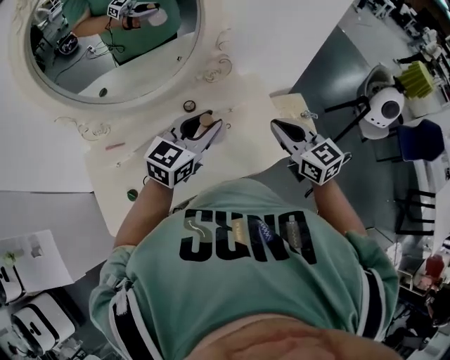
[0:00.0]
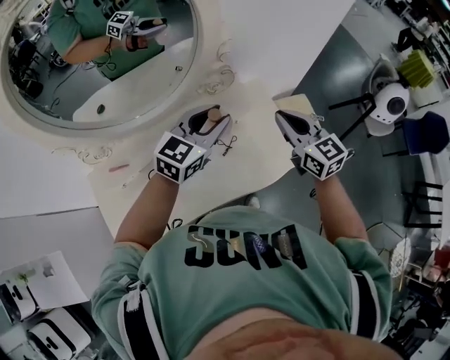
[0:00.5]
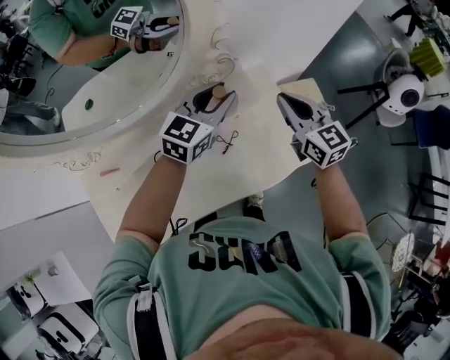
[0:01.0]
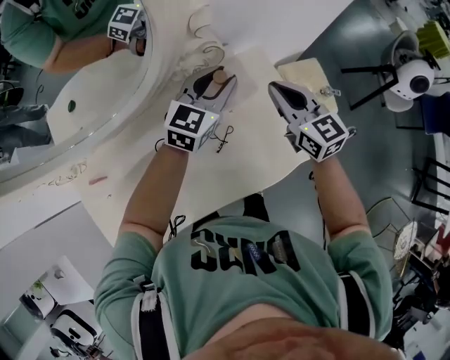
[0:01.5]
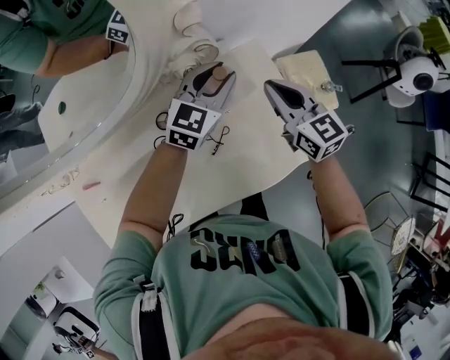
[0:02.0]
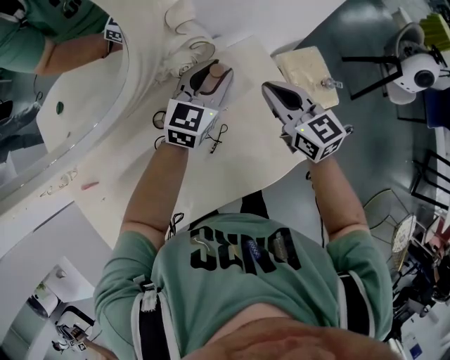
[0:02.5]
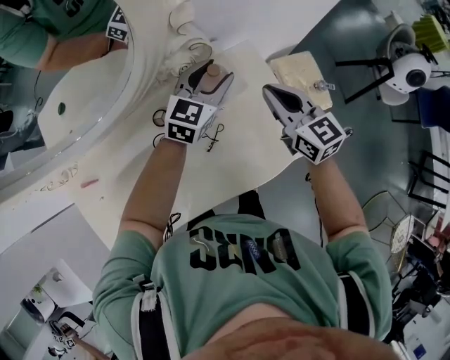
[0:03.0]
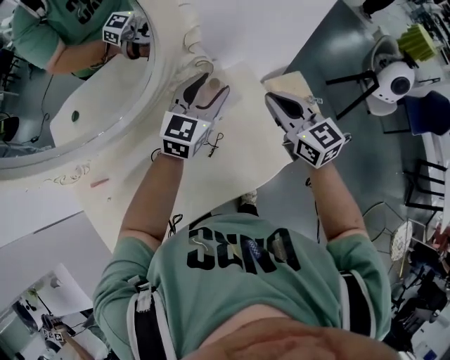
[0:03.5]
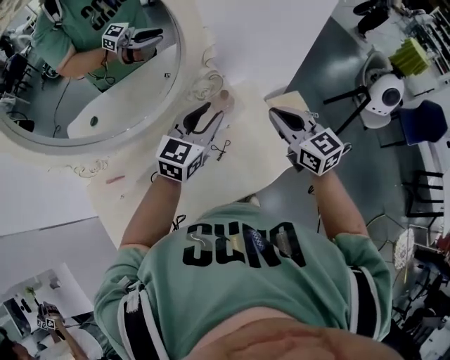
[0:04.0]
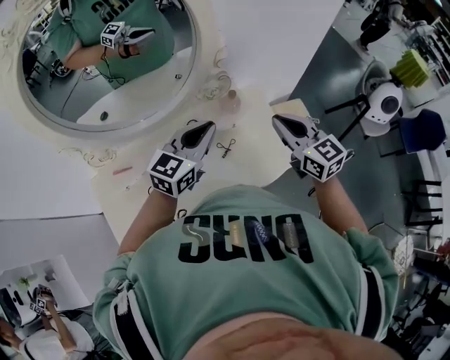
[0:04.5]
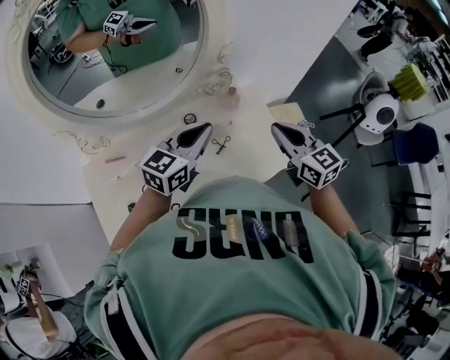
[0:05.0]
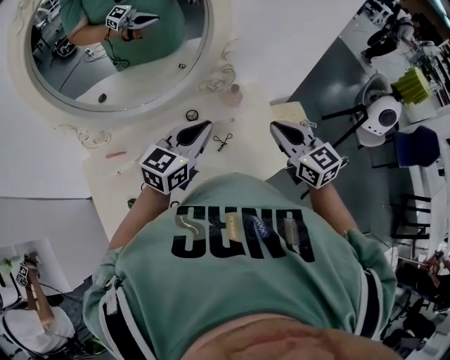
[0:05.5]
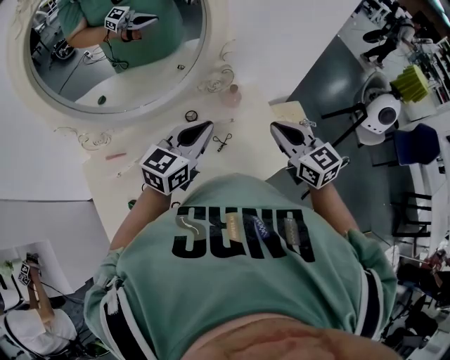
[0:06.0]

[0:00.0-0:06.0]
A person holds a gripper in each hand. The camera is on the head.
0:00.0 to 0:02.0: The two grippers go roughly 30 cm forward and downward.
0:02.0 to 0:04.0: The two grippers go some 20 cm upward and backward.
0:04.0 to 0:06.0: The two grippers go about 10 cm backward. The left gripper closes its fingers.

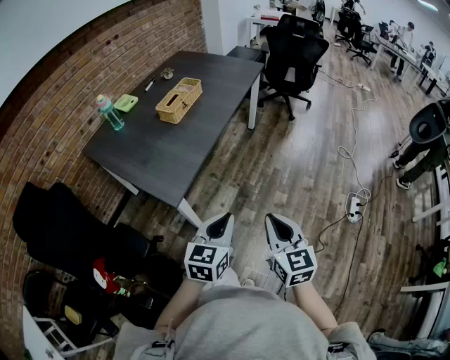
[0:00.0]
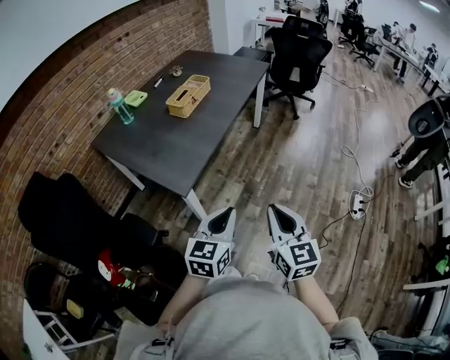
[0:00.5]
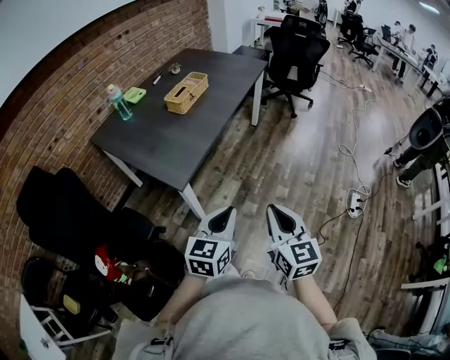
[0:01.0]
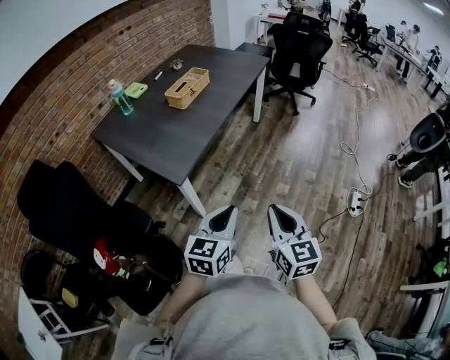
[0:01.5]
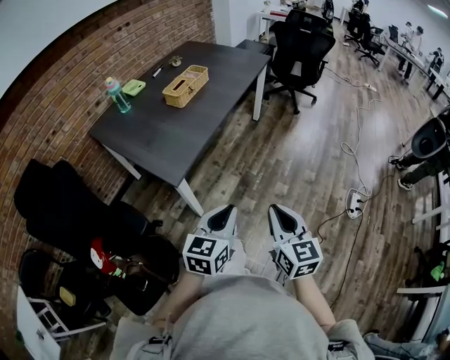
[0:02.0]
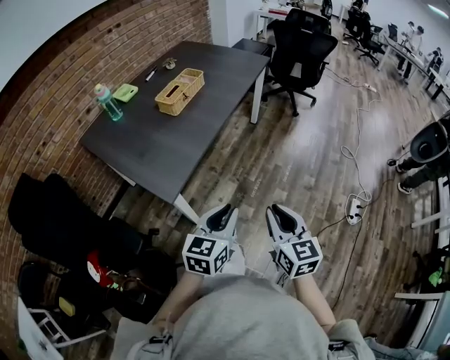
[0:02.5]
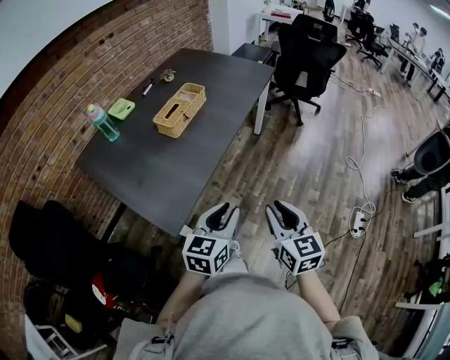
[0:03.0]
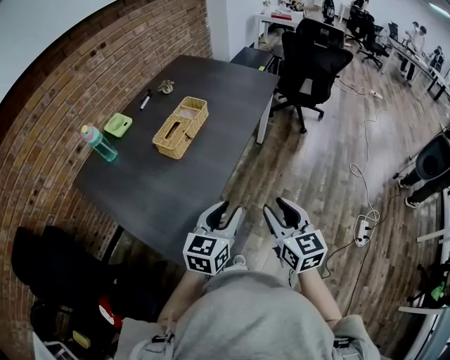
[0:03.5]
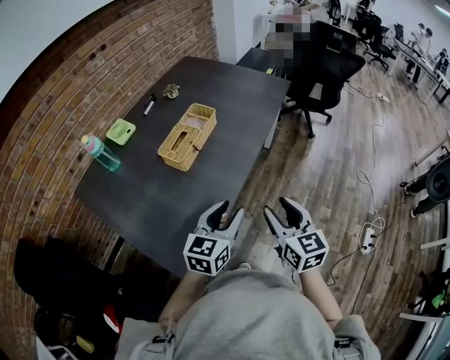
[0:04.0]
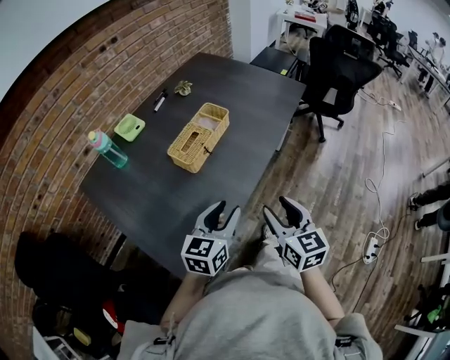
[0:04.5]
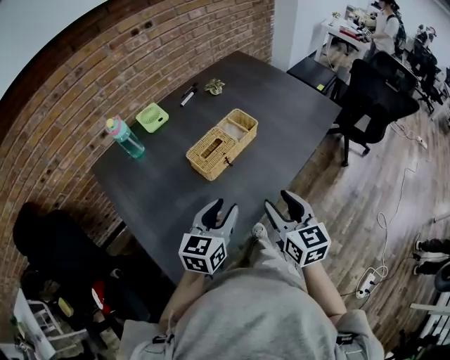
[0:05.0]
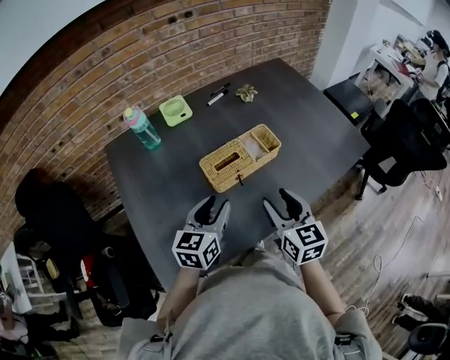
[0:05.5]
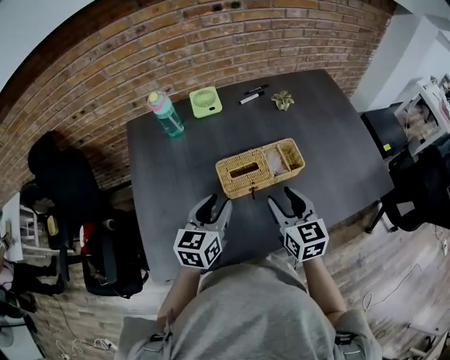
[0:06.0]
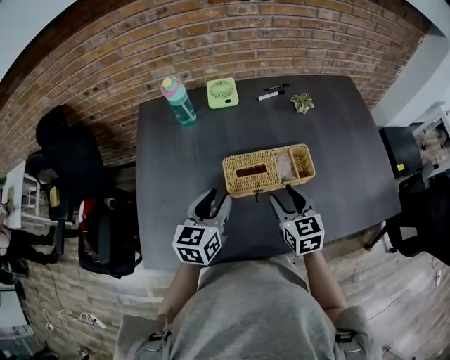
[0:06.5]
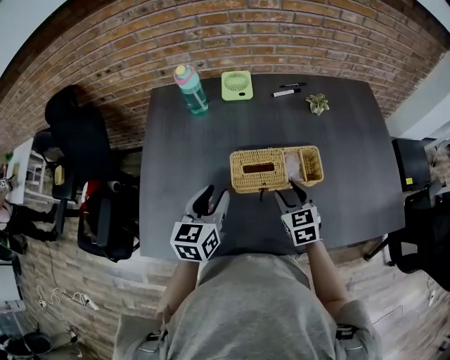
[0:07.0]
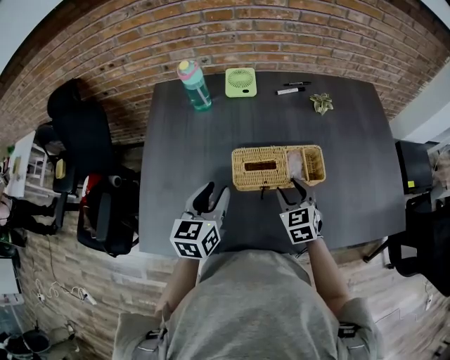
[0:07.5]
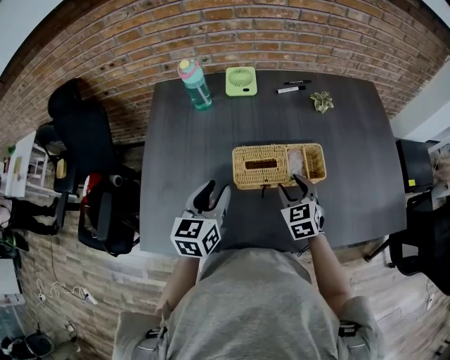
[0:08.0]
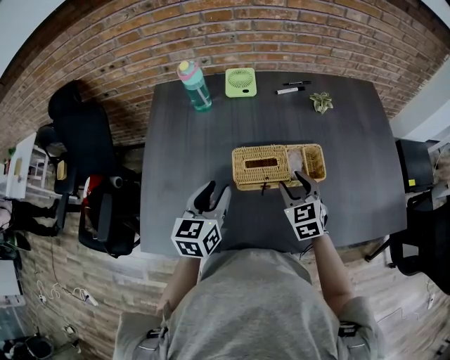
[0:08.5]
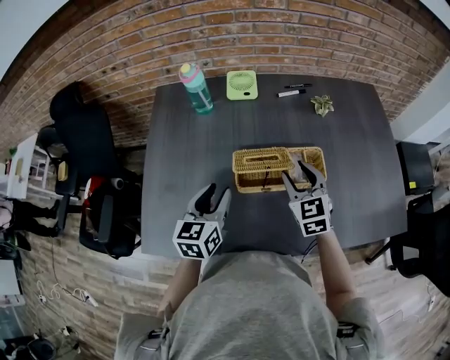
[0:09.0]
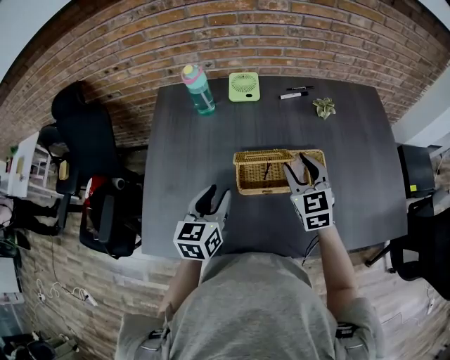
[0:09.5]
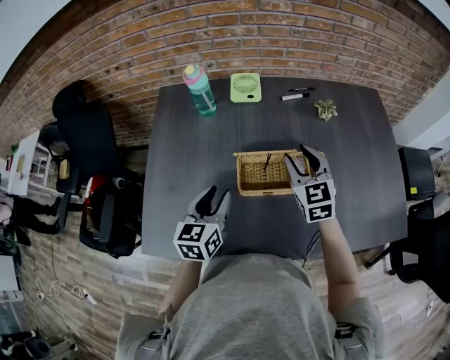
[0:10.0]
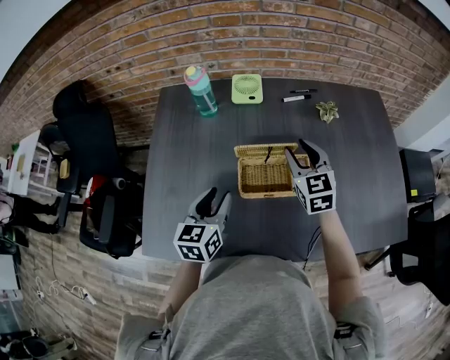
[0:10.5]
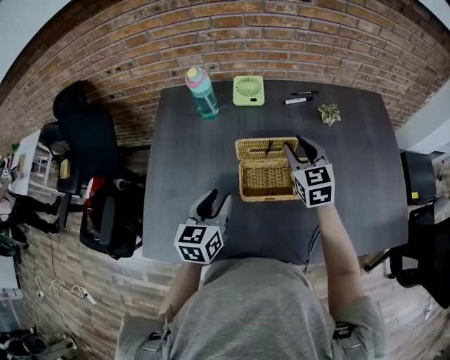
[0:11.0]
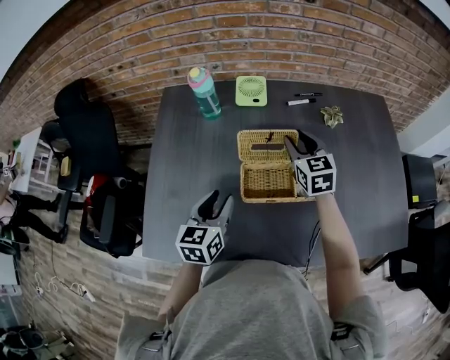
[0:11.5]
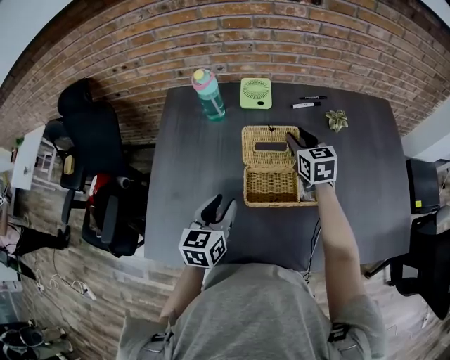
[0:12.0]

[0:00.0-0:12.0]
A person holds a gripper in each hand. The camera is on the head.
0:00.0 to 0:02.0: The right gripper changes place by some 5 cm, while the left gripper heads backward, covering roughly 5 cm.
0:02.0 to 0:04.0: The two grippers travel together, forward, about 40 cm. The left gripper opens up. Meanwhile the right gripper opens up.
0:04.0 to 0:06.0: The right gripper shifts by about 35 cm, and changes its angle by about 50 degrees, while the left gripper ends up approximately 25 cm from where it was, and turns by some 50 degrees.
0:06.0 to 0:08.0: The right gripper is displaced downward and forward by approximately 15 cm, and changes its angle by roughly 30 degrees.
0:08.0 to 0:10.0: The right gripper goes roughly 15 cm upward and forward.
0:10.0 to 0:12.0: The right gripper is displaced forward by about 10 cm.

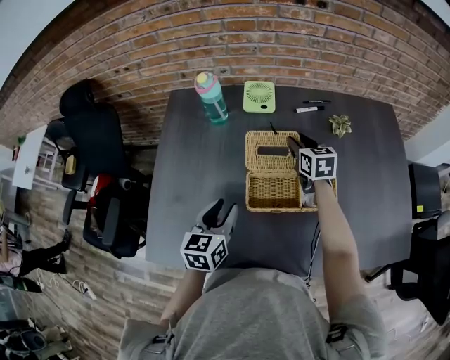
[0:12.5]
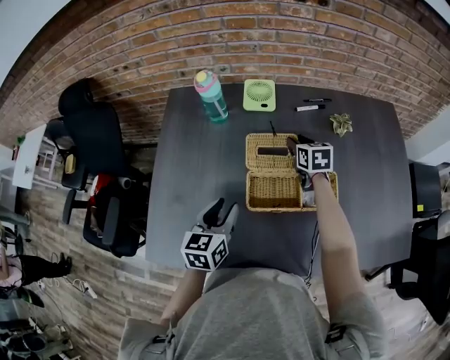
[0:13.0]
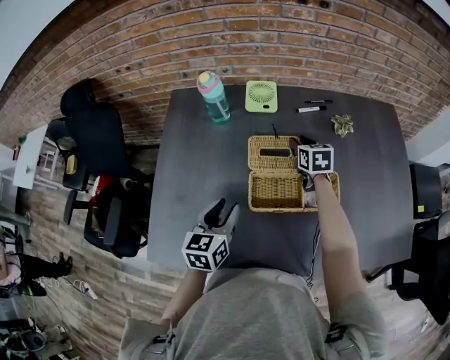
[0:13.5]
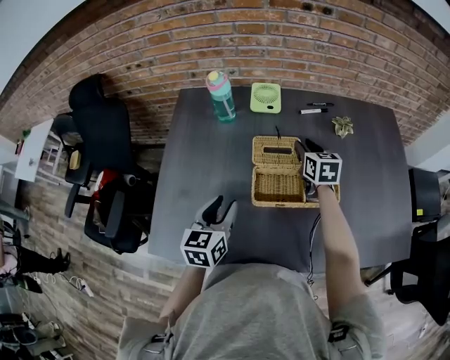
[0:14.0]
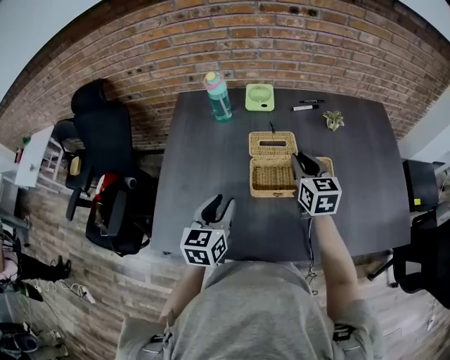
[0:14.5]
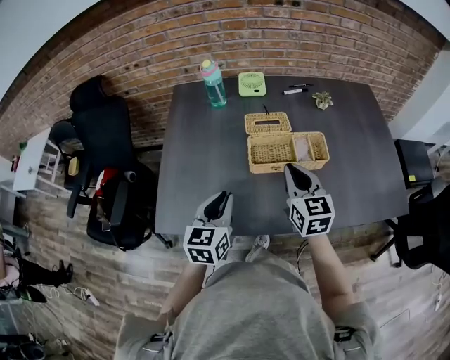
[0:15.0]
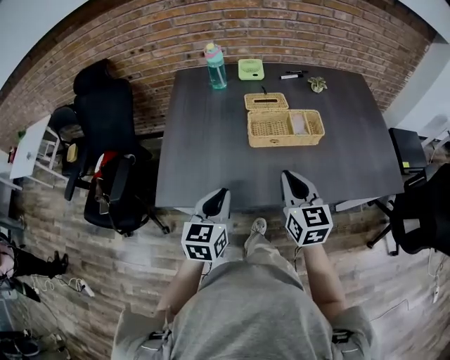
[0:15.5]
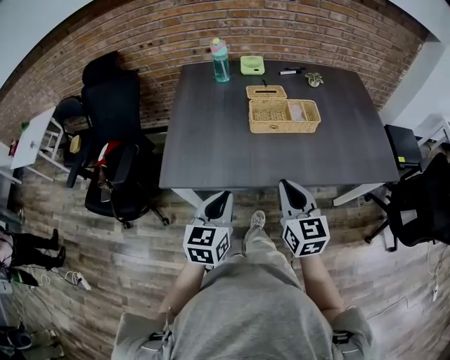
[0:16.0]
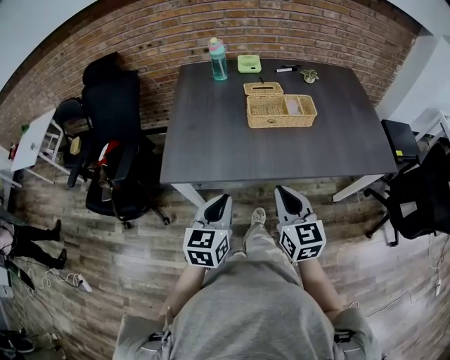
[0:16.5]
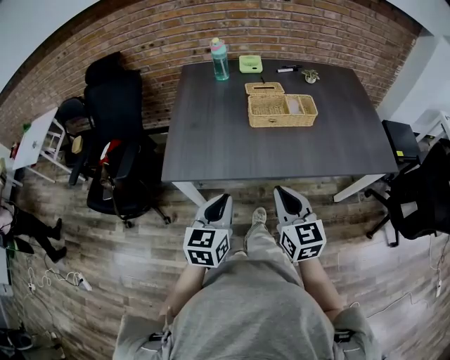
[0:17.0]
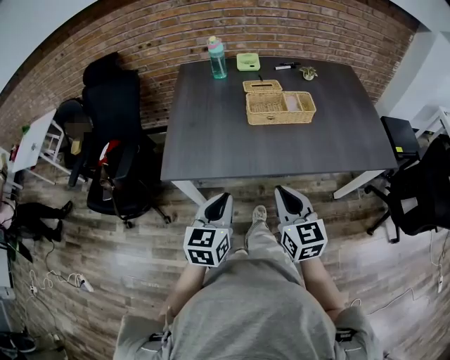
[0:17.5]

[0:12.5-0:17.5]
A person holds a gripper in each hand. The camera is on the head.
0:12.5 to 0:15.0: The left gripper shifts approximately 15 cm backward, and closes up. Meanwhile the right gripper travels backward by roughly 30 cm, and closes up.
0:15.0 to 0:17.5: The two grippers go roughly 30 cm backward.

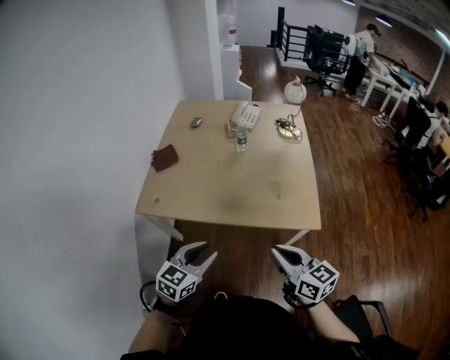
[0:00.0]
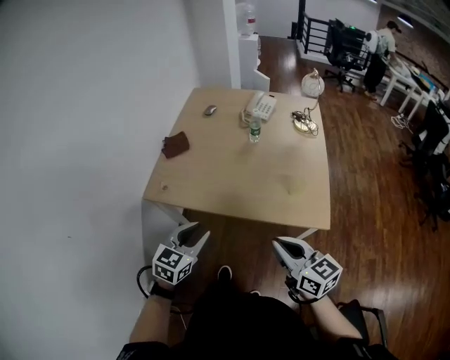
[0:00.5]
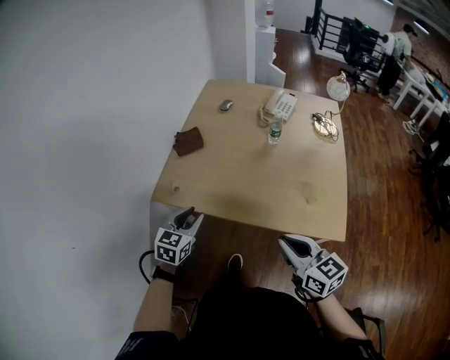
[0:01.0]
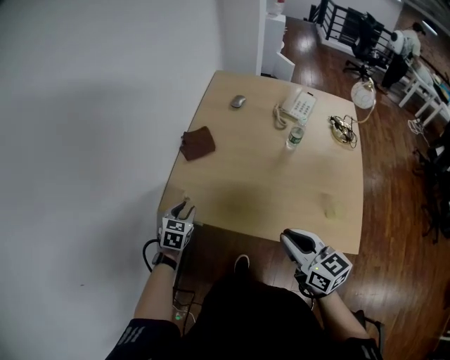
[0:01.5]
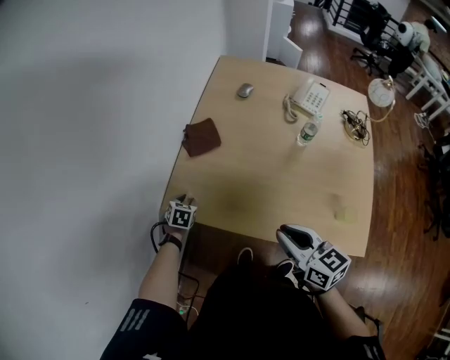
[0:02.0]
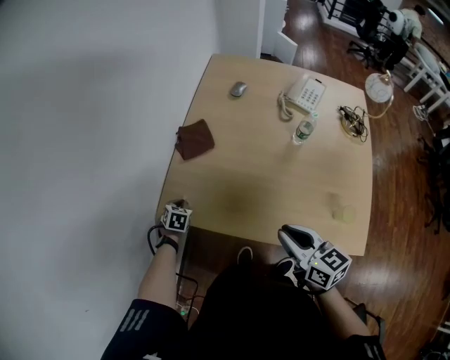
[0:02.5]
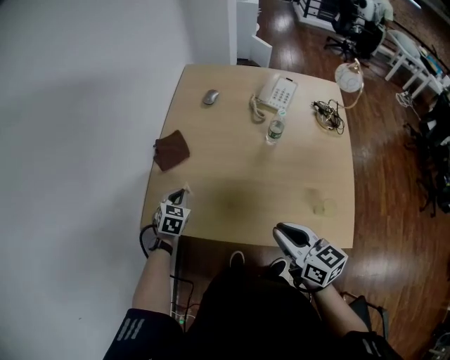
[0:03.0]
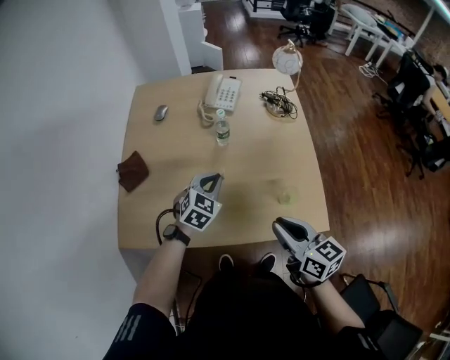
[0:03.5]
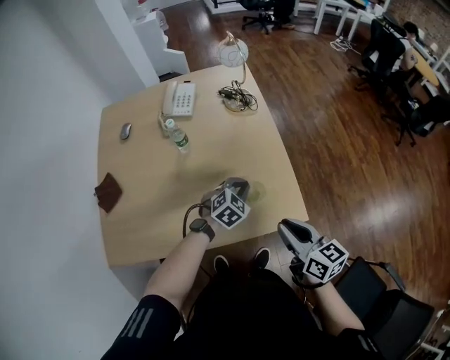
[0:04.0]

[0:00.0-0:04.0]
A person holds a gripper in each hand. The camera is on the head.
0:00.0 to 0:02.0: The left gripper moves approximately 50 cm, and tips its fingers downward by about 30 degrees. The right gripper changes place by about 30 cm.
0:02.0 to 0:04.0: The right gripper ends up some 35 cm from where it was, and rotates about 40 degrees, while the left gripper changes place by roughly 70 cm, twists approximately 50 degrees clockwise, seen from behind, and closes up.
